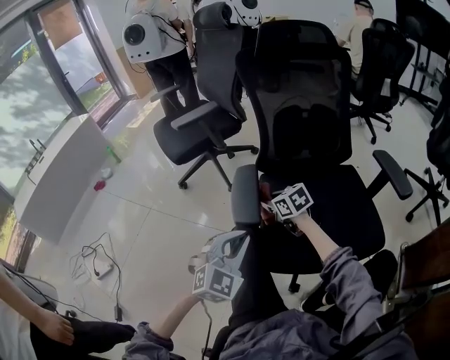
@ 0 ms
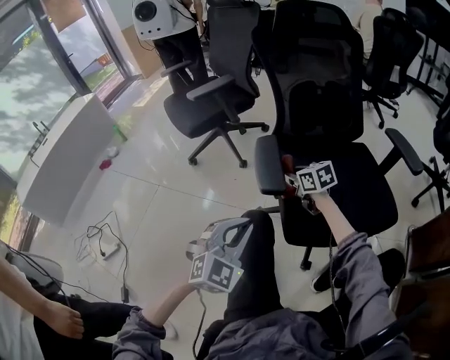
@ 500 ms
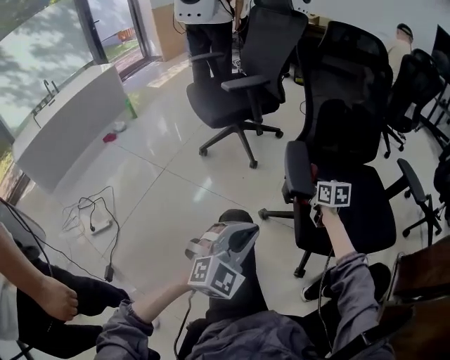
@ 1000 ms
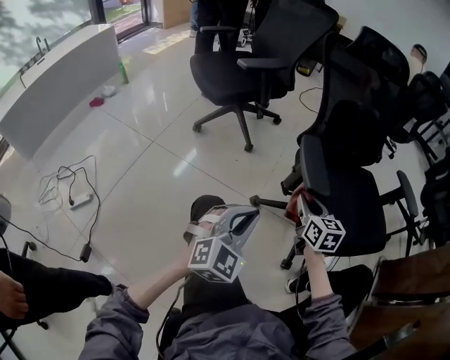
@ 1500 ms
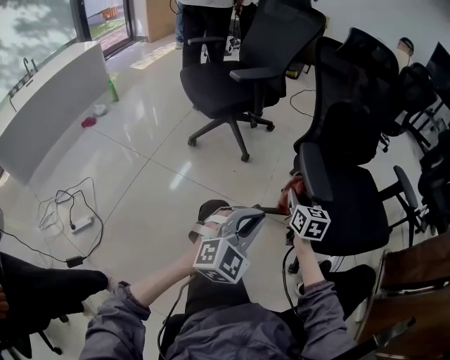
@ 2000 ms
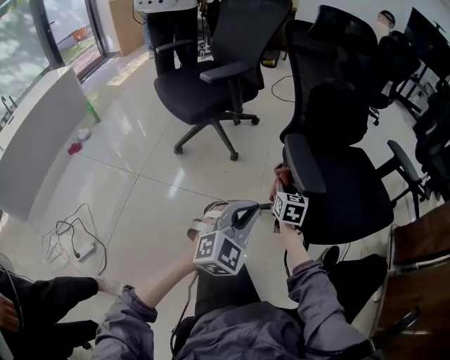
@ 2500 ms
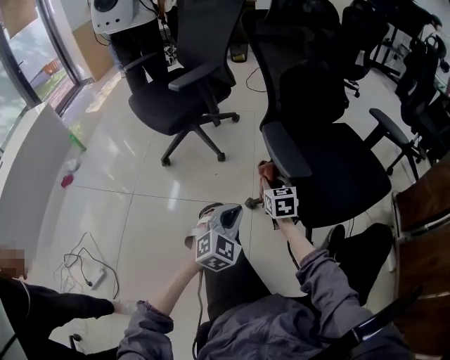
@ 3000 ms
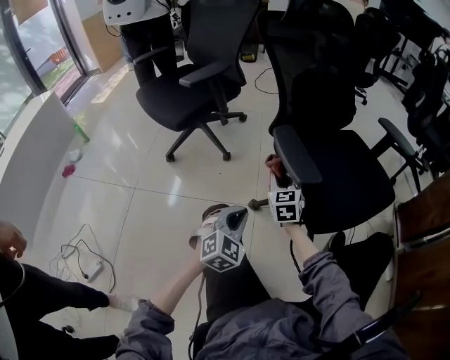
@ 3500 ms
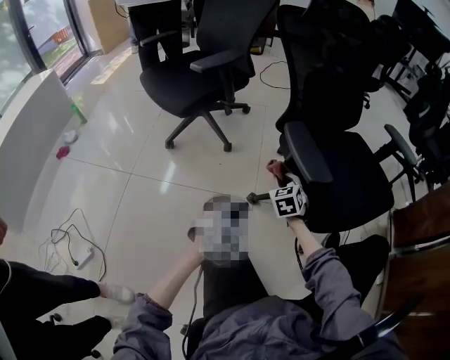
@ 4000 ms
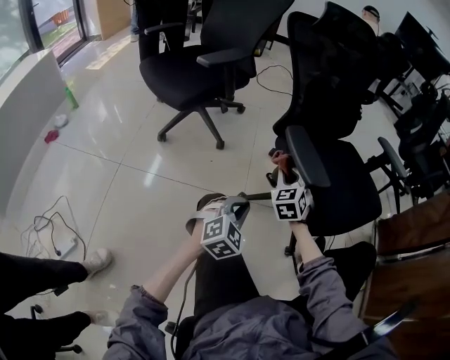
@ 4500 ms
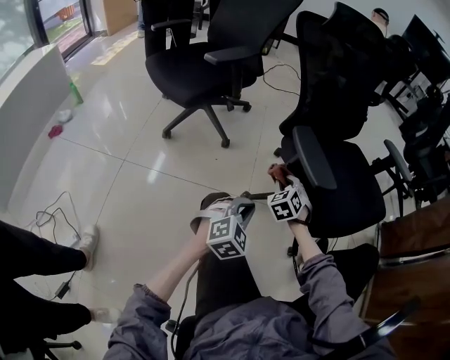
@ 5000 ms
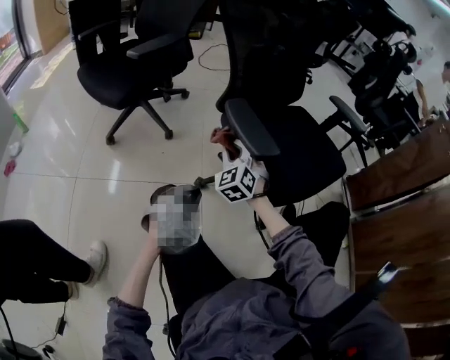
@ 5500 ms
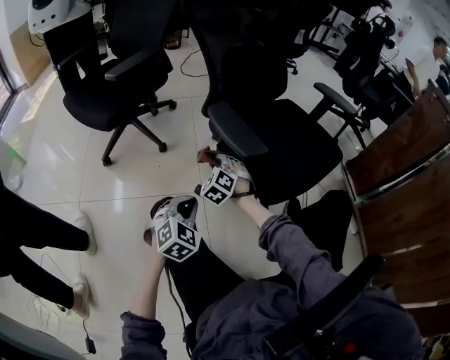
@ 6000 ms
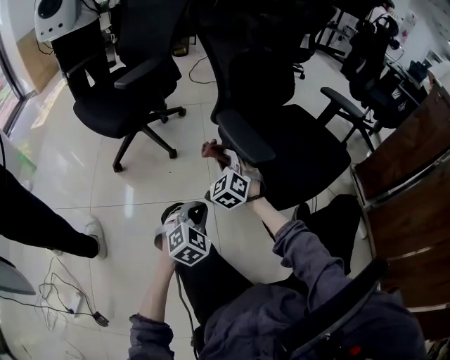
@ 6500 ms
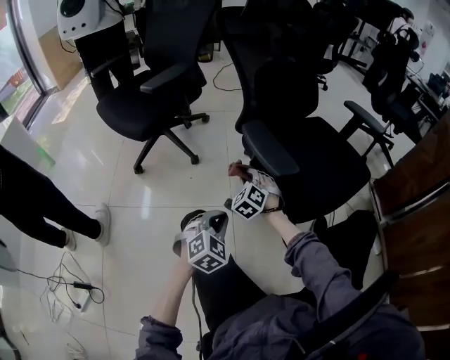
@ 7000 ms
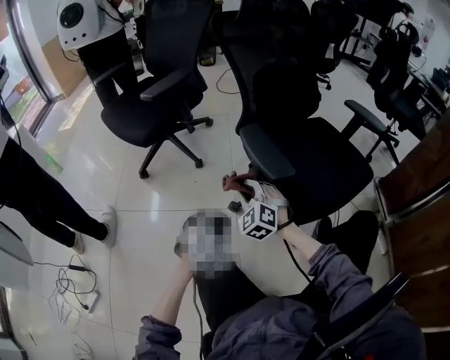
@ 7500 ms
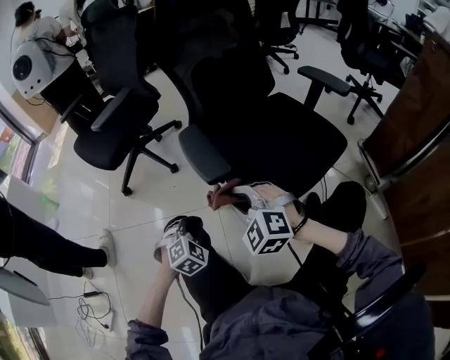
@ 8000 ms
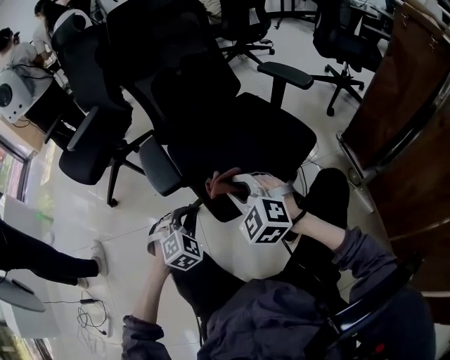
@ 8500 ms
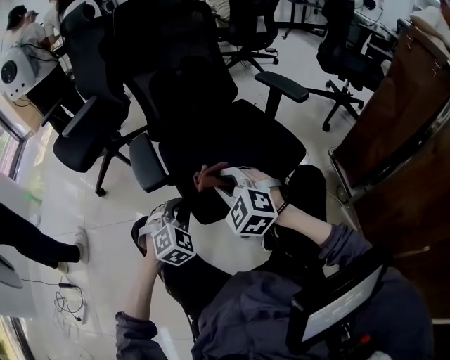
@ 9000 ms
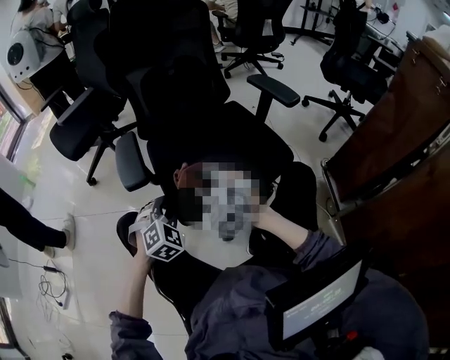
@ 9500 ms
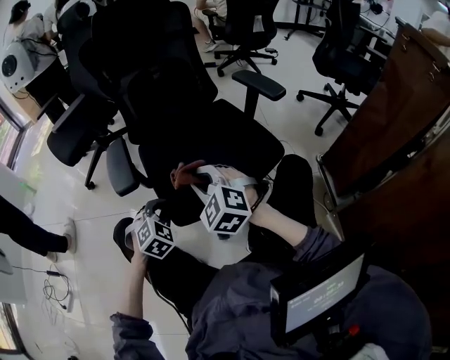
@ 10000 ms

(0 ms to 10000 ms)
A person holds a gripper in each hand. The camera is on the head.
0 ms - 2000 ms: The right gripper travels to the left and backward by some 10 cm, and turns by roughly 40 degrees; the left gripper heads to the left, covering some 15 cm.
2000 ms - 4000 ms: The right gripper moves downward, some 10 cm, and changes its angle by some 30 degrees, while the left gripper is displaced downward and forward by roughly 15 cm.
4000 ms - 6000 ms: The right gripper moves up and down over some 10 cm, changing direction 3 times, and turns by roughly 30 degrees.
6000 ms - 8000 ms: The left gripper ends up approximately 5 cm from where it was. Meanwhile the right gripper goes up and down, some 15 cm each way, reversing 2 times, and rotates some 30 degrees.
8000 ms - 10000 ms: Both grippers move to the right, roughly 20 cm.

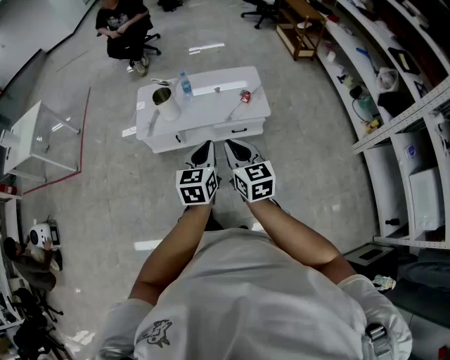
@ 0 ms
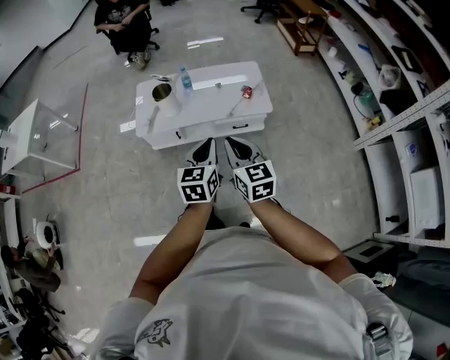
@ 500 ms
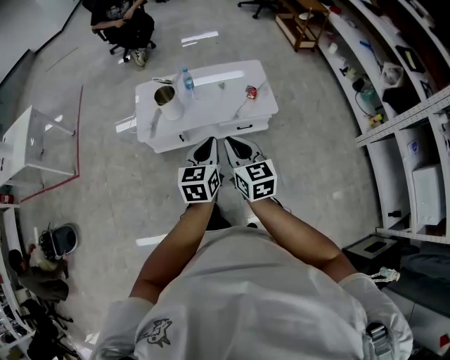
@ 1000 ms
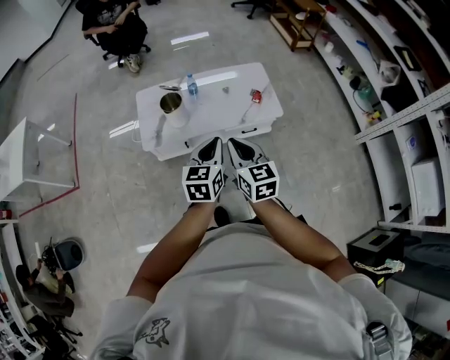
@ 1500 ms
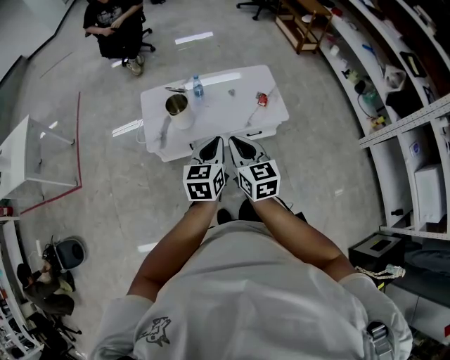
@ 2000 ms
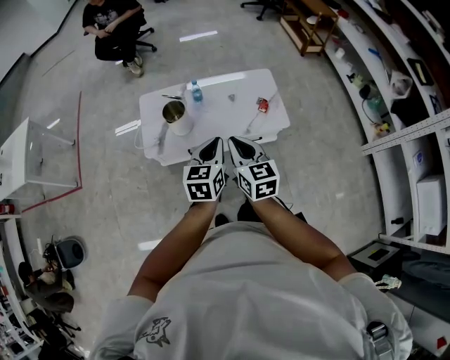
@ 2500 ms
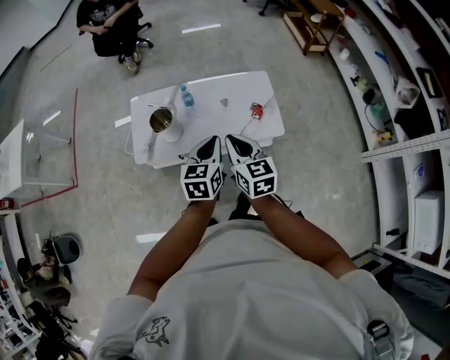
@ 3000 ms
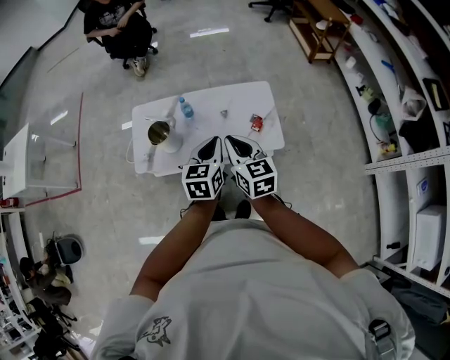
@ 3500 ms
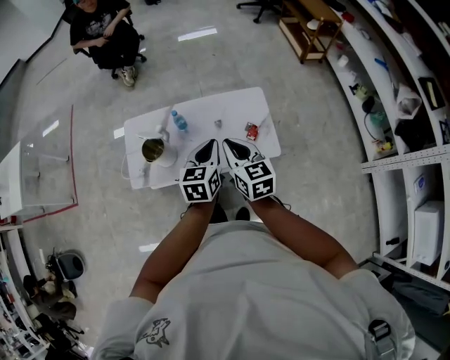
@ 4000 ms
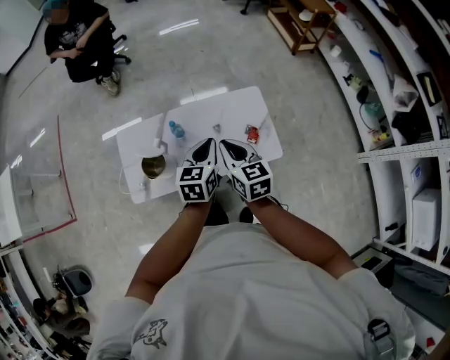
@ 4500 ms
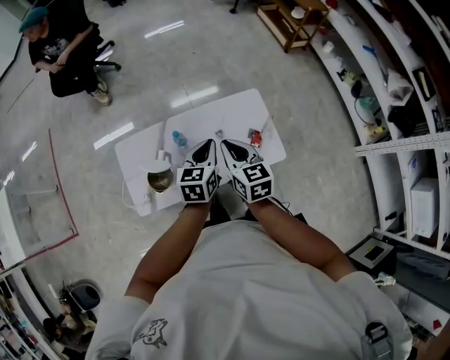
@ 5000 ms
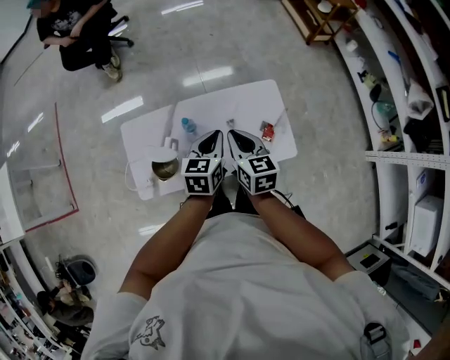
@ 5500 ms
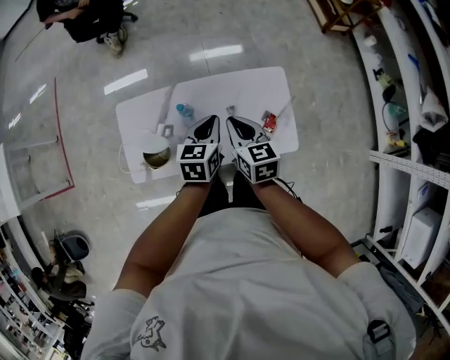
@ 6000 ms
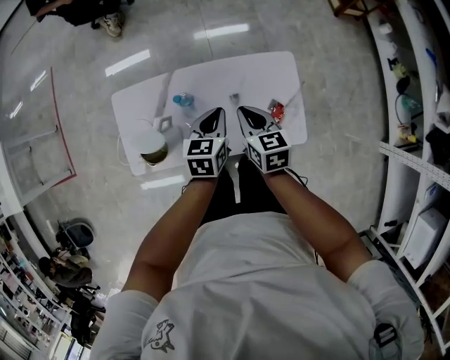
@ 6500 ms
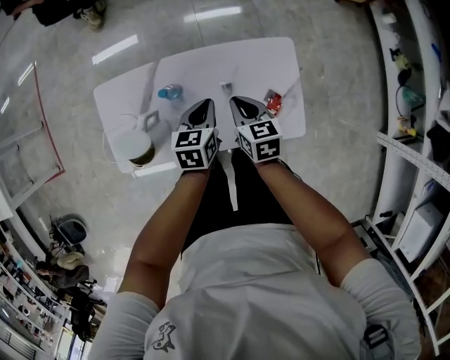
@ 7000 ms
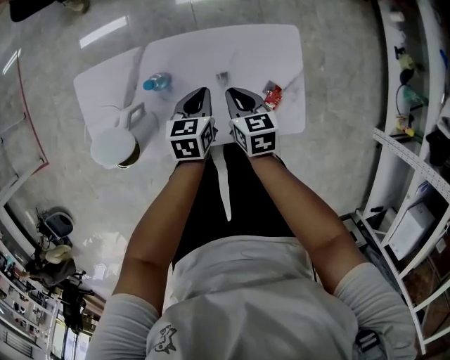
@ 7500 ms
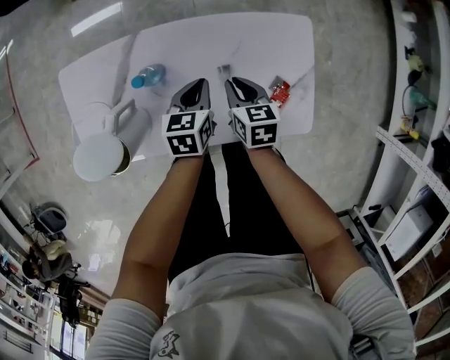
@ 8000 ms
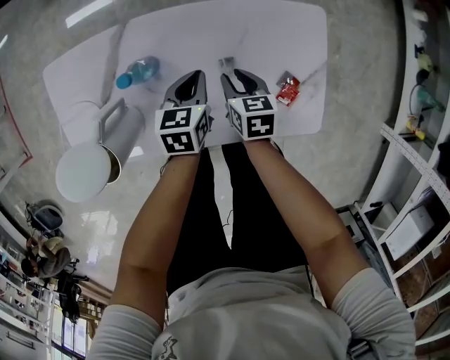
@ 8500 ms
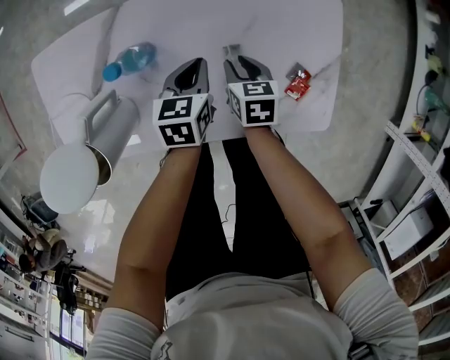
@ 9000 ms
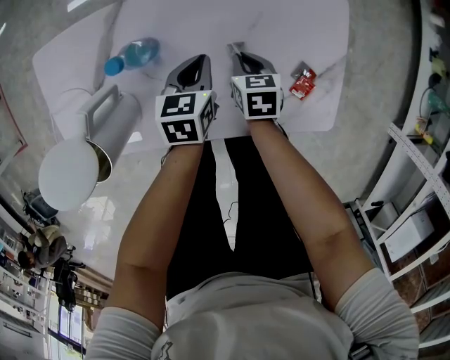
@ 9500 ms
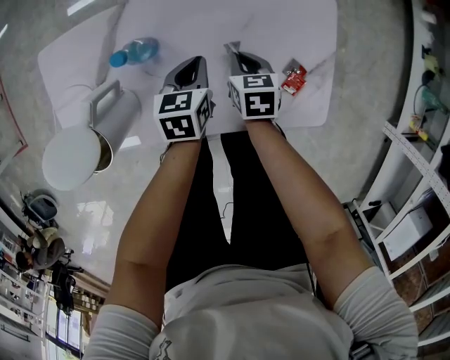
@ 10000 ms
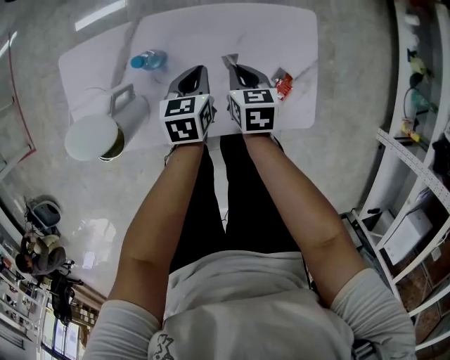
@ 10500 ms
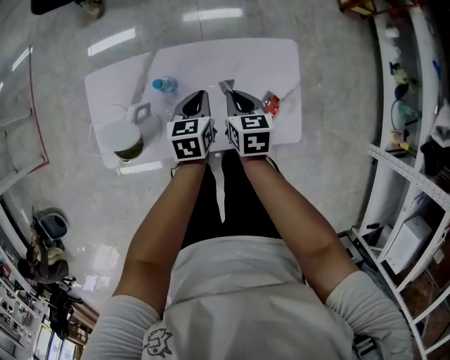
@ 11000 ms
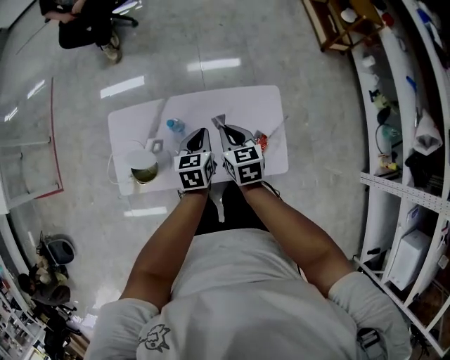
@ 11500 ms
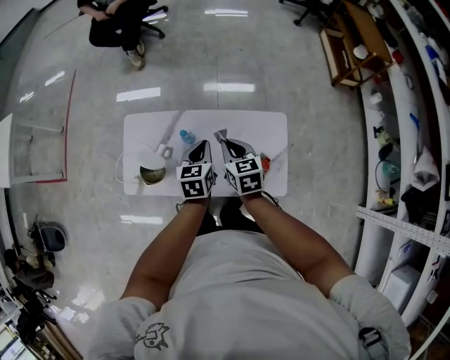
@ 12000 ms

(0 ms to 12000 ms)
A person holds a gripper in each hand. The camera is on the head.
0 ms - 2000 ms: The two grippers go approximately 20 cm forward and to the left.
2000 ms - 4000 ms: Both grippers travel together forward and to the right, some 30 cm.
4000 ms - 6000 ms: Both grippers travel together forward and downward, roughly 20 cm.
6000 ms - 8000 ms: Both grippers travel together downward, some 30 cm.
8000 ms - 10000 ms: The two grippers go approximately 10 cm downward.
10000 ms - 12000 ms: Both grippers travel together upward, some 35 cm. The right gripper swivels about 20 degrees.

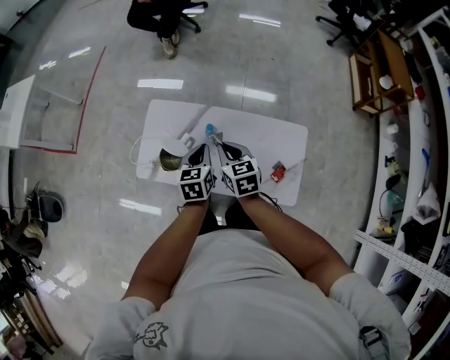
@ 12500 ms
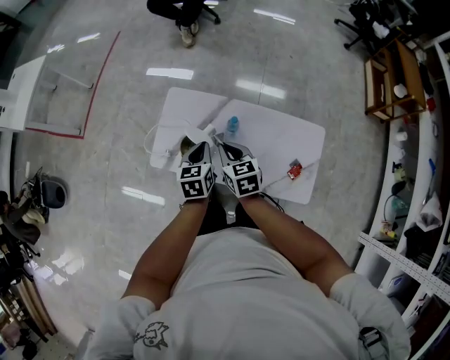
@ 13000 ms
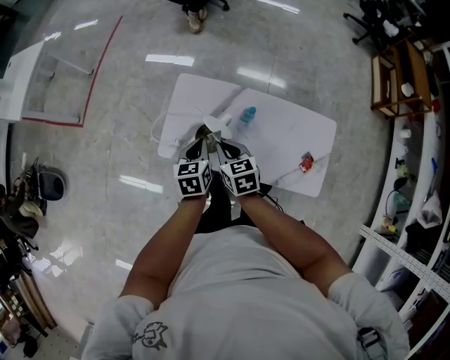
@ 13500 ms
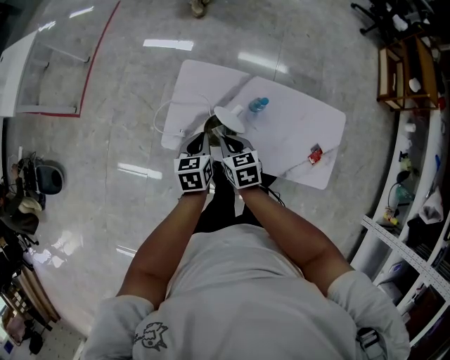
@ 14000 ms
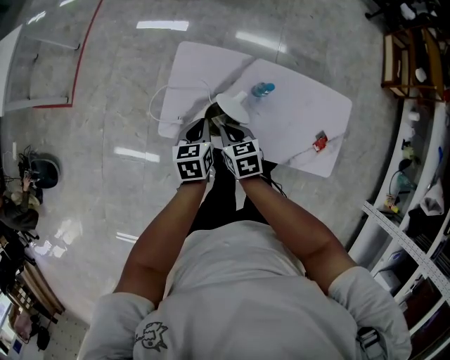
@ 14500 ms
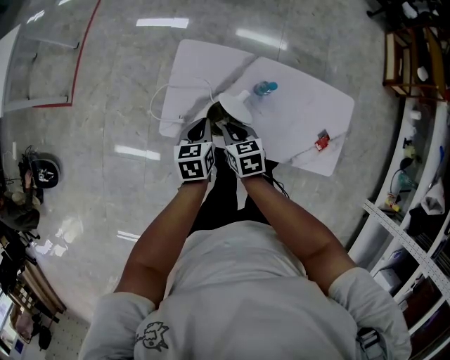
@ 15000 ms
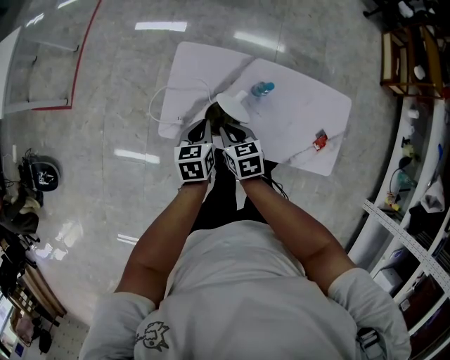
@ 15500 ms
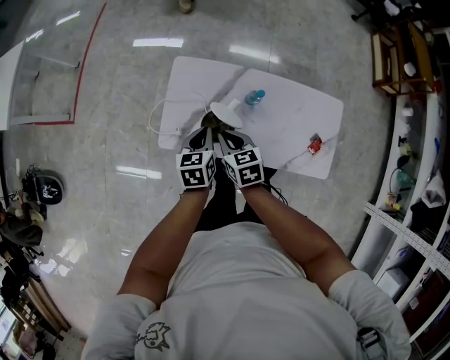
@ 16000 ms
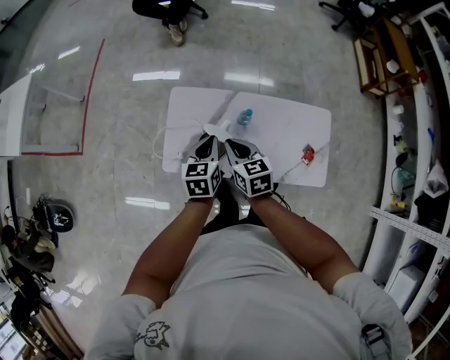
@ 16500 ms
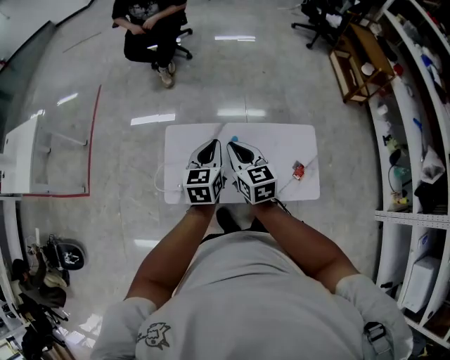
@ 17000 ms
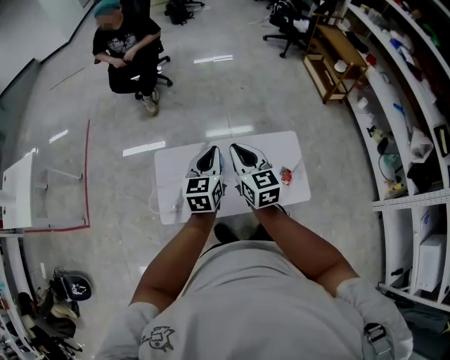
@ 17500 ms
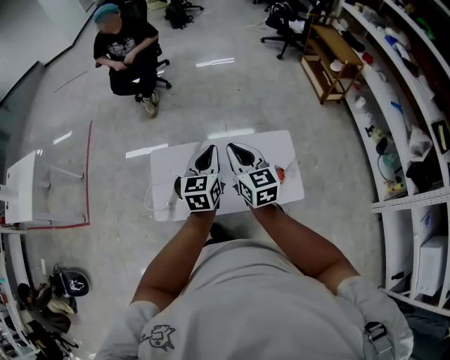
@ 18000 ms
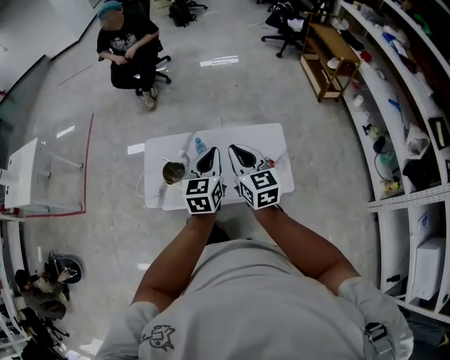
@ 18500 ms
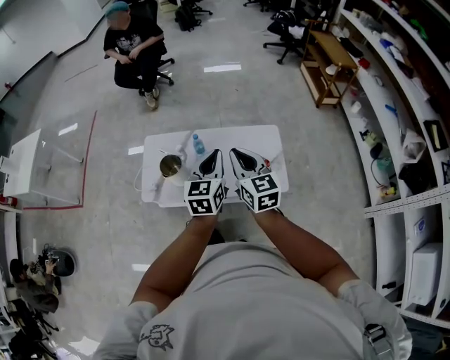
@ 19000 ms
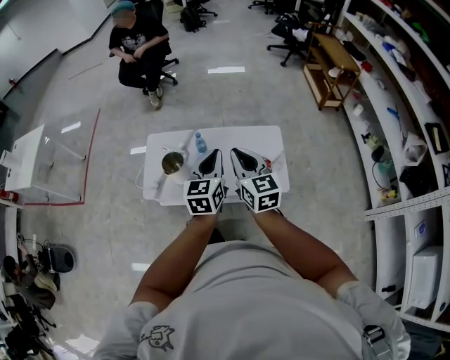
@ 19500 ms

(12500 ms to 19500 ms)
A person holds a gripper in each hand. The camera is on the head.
12500 ms - 14500 ms: Both grippers travel together to the left and downward, approximately 25 cm.
14500 ms - 16000 ms: The right gripper changes place by about 5 cm.
16000 ms - 17500 ms: Both grippers travel together upward and to the right, some 30 cm. The left gripper changes its angle by about 30 degrees. The right gripper turns by approximately 40 degrees.
17500 ms - 19500 ms: Both grippers move backward and to the right, some 25 cm.
